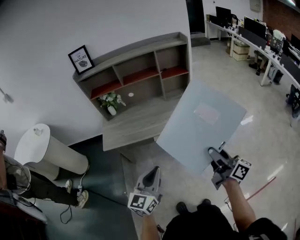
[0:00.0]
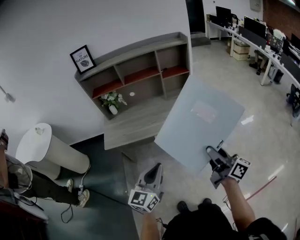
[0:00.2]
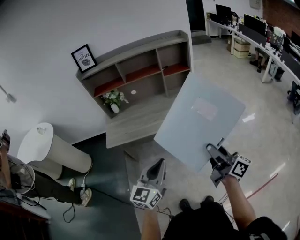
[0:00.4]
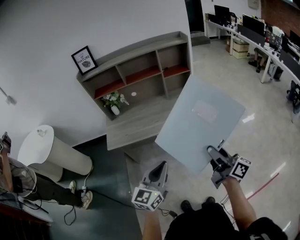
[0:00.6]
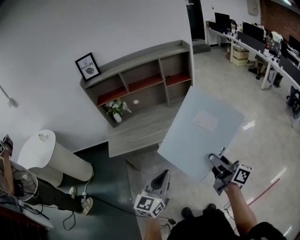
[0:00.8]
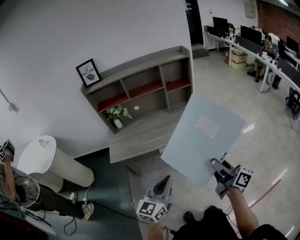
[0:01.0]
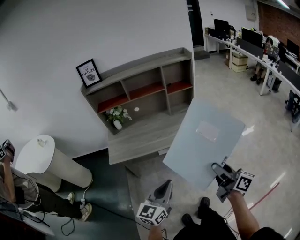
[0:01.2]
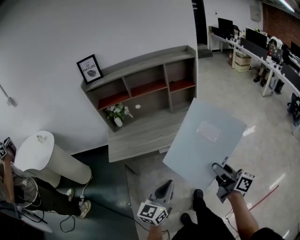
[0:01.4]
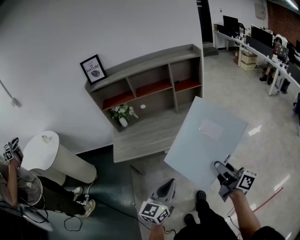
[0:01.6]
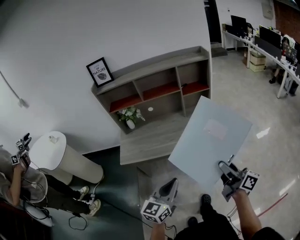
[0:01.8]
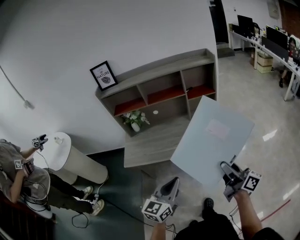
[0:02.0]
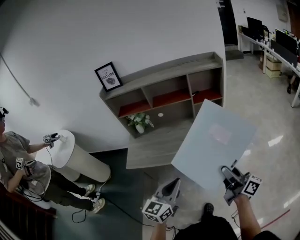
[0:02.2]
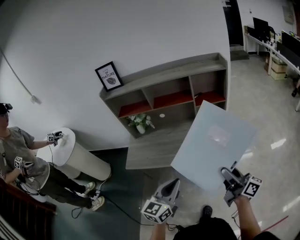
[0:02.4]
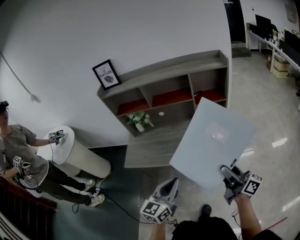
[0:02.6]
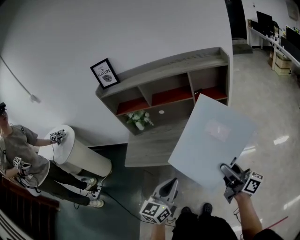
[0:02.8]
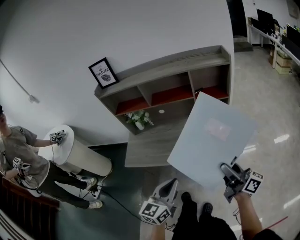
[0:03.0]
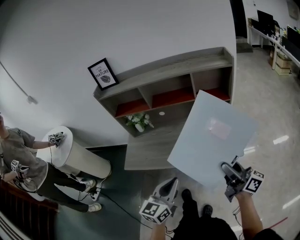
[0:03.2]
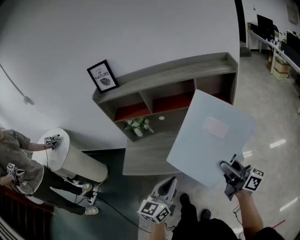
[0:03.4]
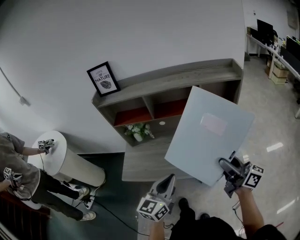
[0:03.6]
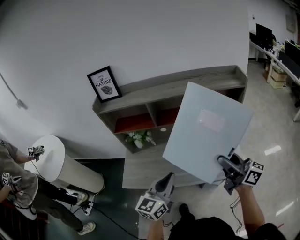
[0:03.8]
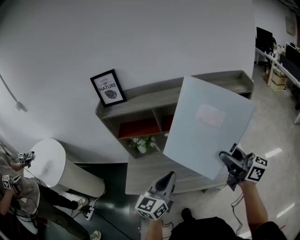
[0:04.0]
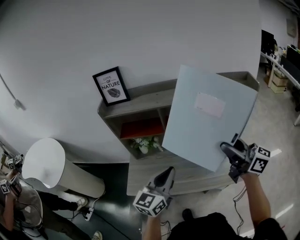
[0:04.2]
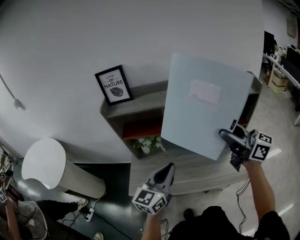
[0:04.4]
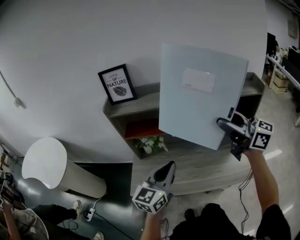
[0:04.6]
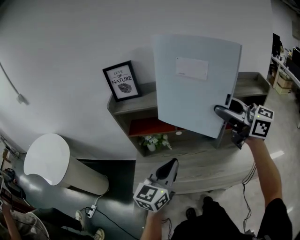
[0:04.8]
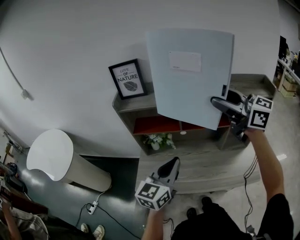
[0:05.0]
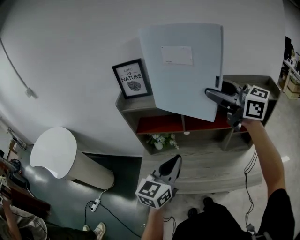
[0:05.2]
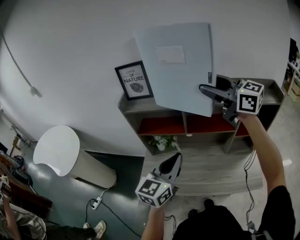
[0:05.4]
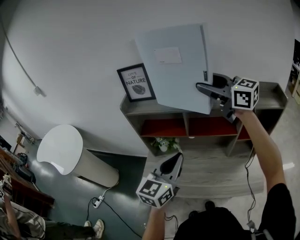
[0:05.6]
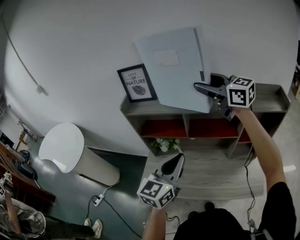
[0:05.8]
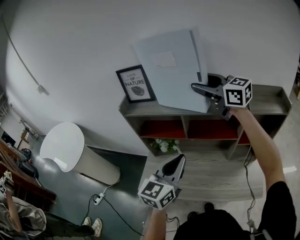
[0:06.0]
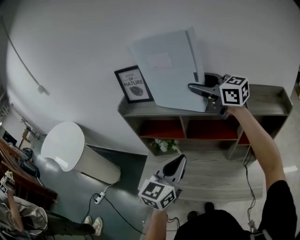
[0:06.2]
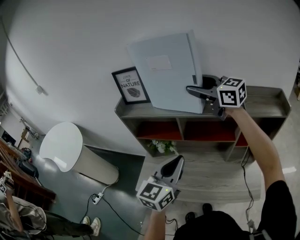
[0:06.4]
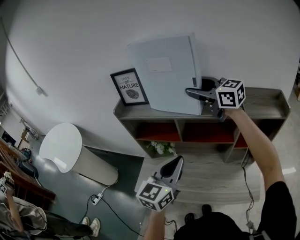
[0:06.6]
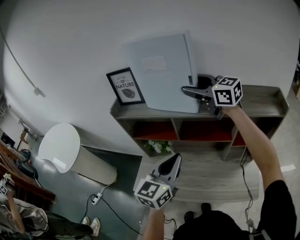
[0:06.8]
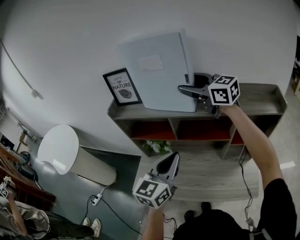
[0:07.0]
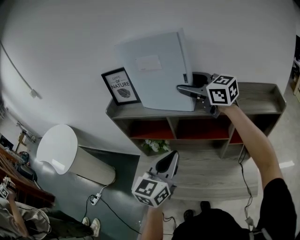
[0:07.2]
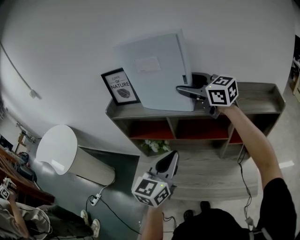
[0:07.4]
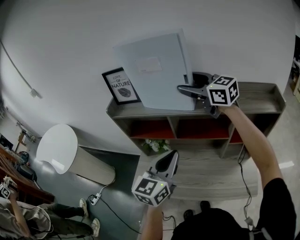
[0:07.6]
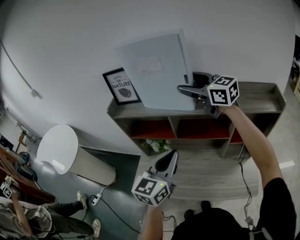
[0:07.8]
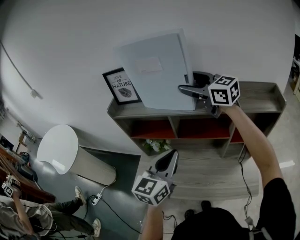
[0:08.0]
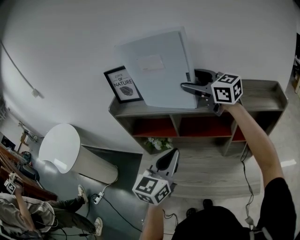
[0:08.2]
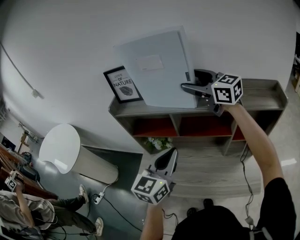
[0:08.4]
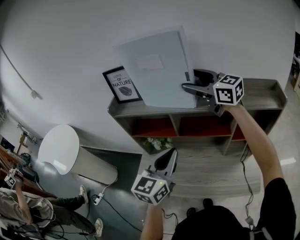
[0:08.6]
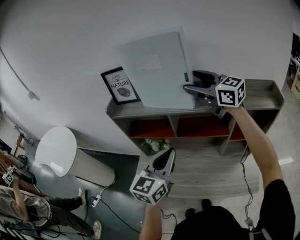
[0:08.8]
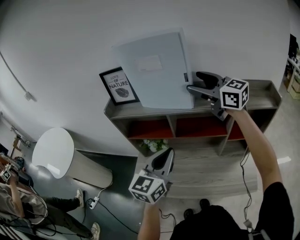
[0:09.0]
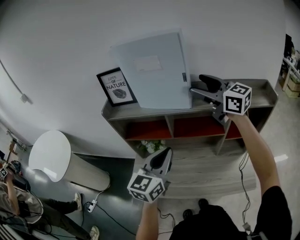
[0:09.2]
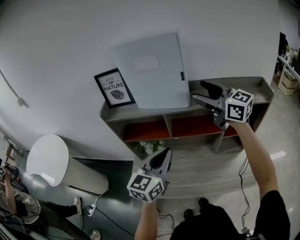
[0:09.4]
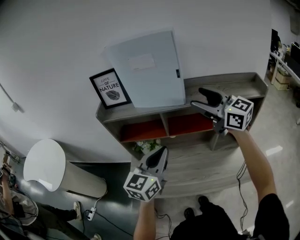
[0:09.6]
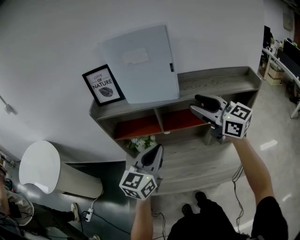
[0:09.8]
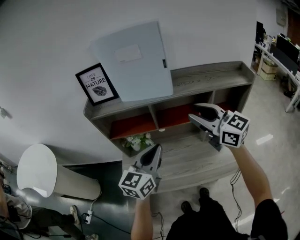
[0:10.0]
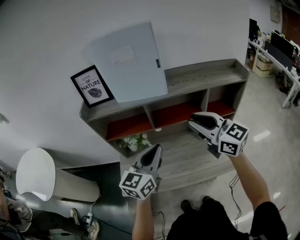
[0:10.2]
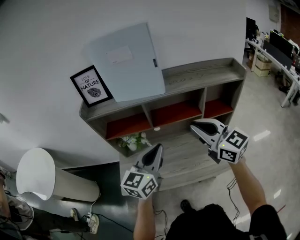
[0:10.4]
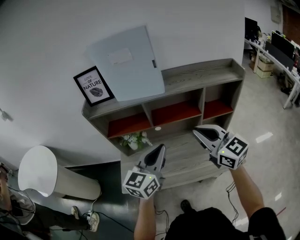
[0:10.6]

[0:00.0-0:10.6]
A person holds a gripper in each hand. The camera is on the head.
0:00.0 to 0:01.6: The grippers move only a little.
0:01.6 to 0:03.0: The grippers both shift forward by about 20 cm.
0:03.0 to 0:04.6: The right gripper heads forward, upward and to the left, covering some 40 cm, and swivels about 30 degrees. The left gripper shifts roughly 30 cm forward and to the left.
0:04.6 to 0:06.0: The left gripper changes place by some 10 cm, while the right gripper goes about 20 cm forward.
0:06.0 to 0:09.0: The grippers make only small movements.
0:09.0 to 0:10.6: The right gripper is displaced backward and downward by roughly 30 cm, changes its angle by roughly 20 degrees, and closes its fingers, while the left gripper shifts roughly 5 cm backward.

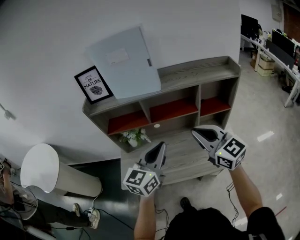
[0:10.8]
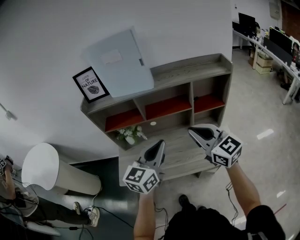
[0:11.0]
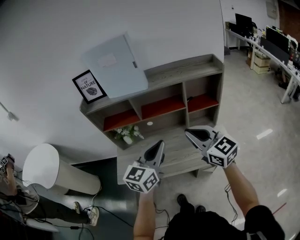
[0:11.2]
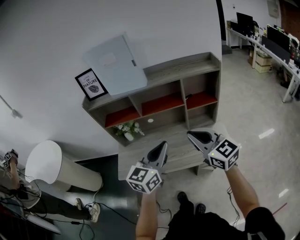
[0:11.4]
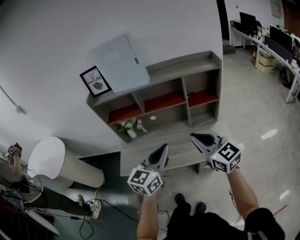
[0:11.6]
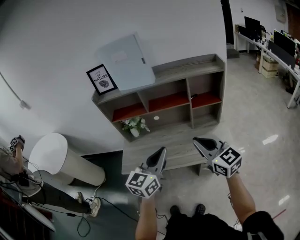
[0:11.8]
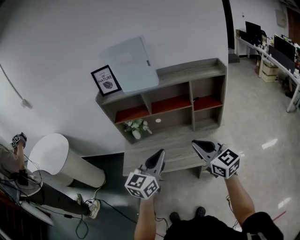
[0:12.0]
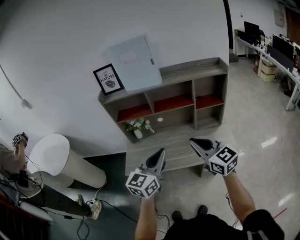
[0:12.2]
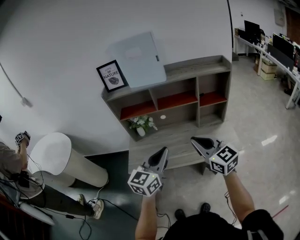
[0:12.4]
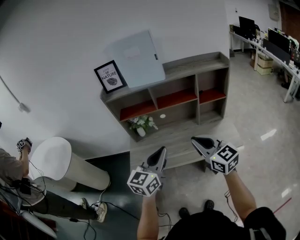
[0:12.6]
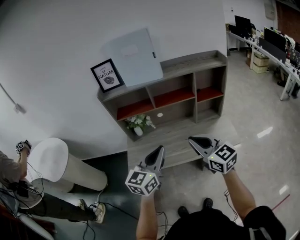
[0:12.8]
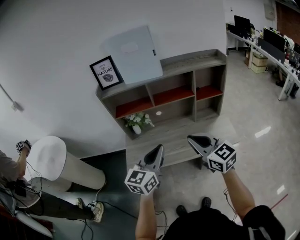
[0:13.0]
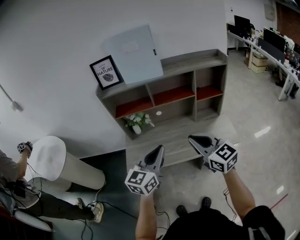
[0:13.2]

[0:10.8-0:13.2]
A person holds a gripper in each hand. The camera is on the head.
0:10.8 to 0:12.0: Both grippers travel together backward, roughly 15 cm.
0:12.0 to 0:13.2: Both grippers move to the left, some 10 cm.

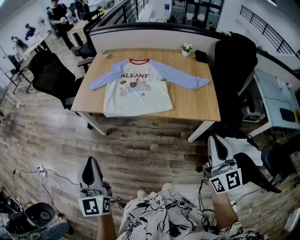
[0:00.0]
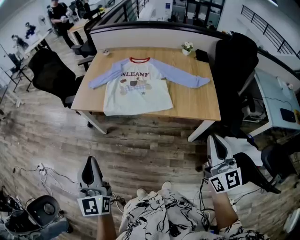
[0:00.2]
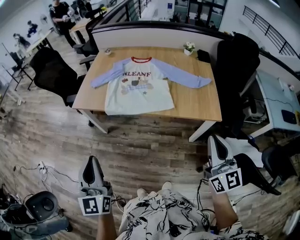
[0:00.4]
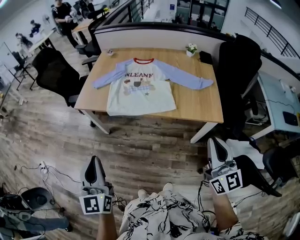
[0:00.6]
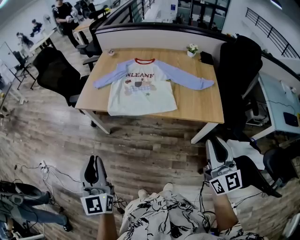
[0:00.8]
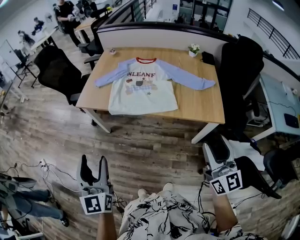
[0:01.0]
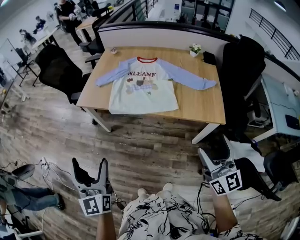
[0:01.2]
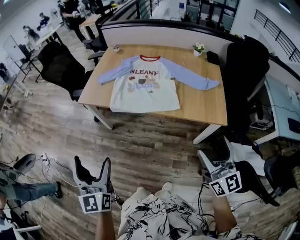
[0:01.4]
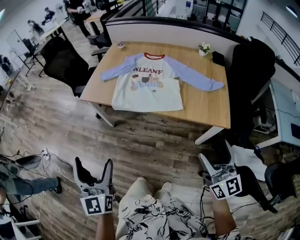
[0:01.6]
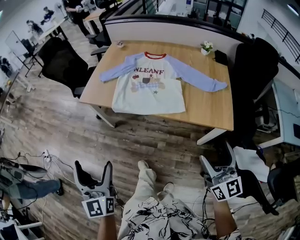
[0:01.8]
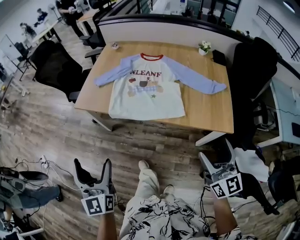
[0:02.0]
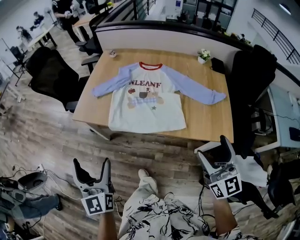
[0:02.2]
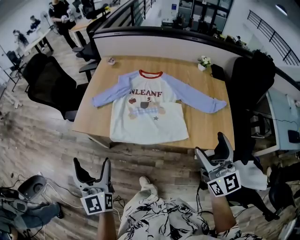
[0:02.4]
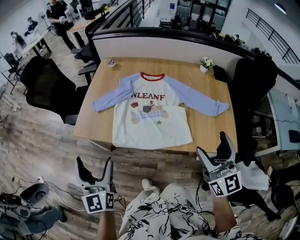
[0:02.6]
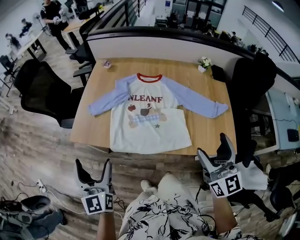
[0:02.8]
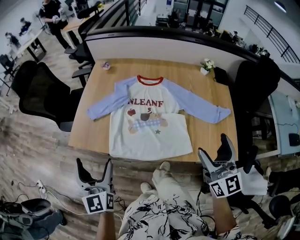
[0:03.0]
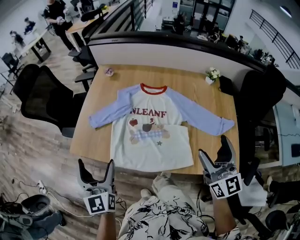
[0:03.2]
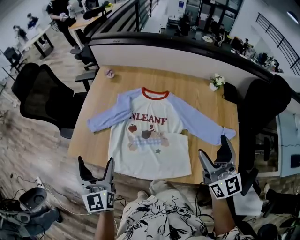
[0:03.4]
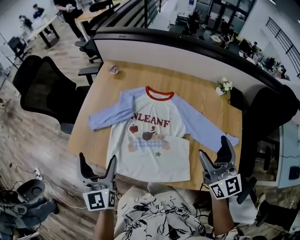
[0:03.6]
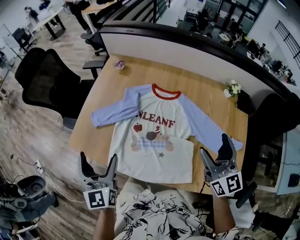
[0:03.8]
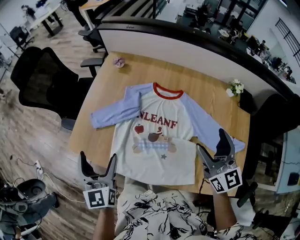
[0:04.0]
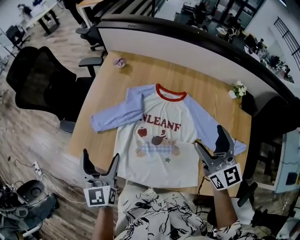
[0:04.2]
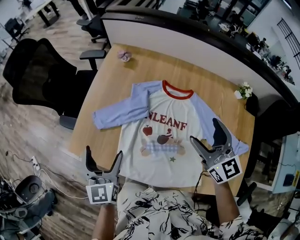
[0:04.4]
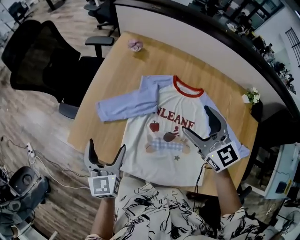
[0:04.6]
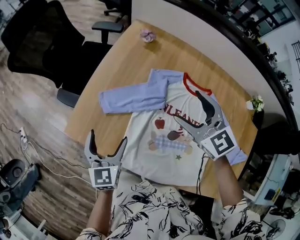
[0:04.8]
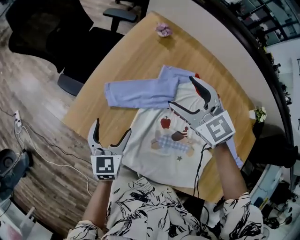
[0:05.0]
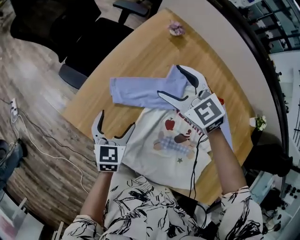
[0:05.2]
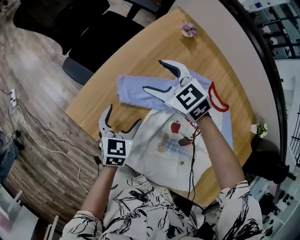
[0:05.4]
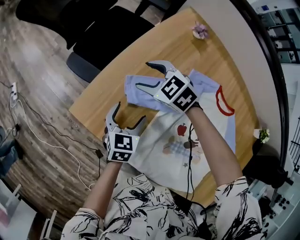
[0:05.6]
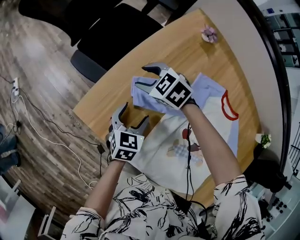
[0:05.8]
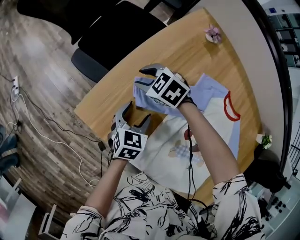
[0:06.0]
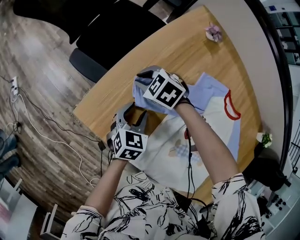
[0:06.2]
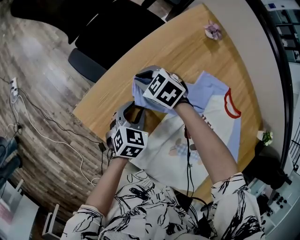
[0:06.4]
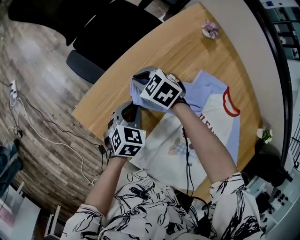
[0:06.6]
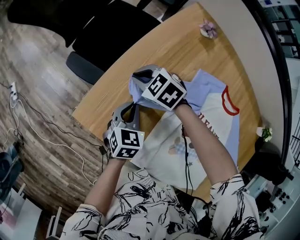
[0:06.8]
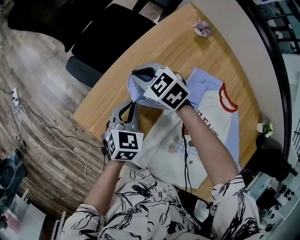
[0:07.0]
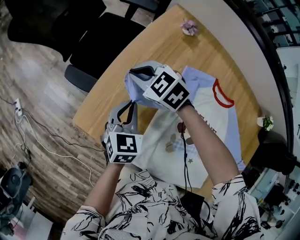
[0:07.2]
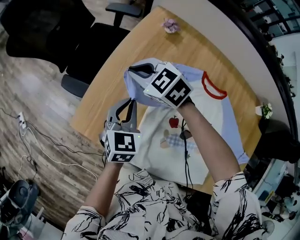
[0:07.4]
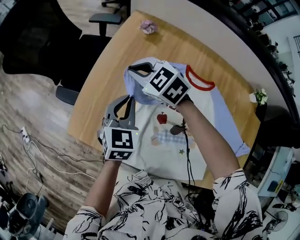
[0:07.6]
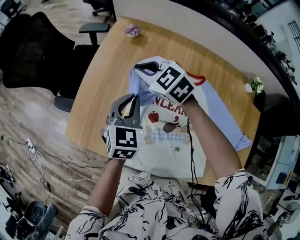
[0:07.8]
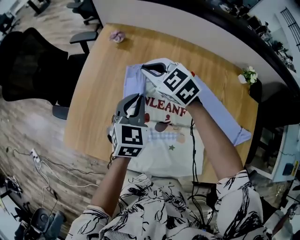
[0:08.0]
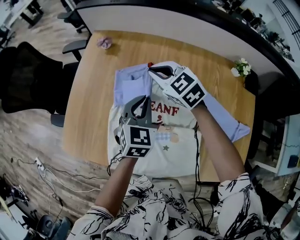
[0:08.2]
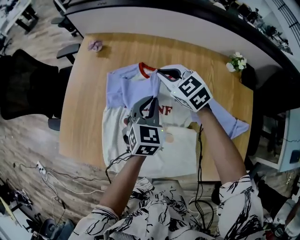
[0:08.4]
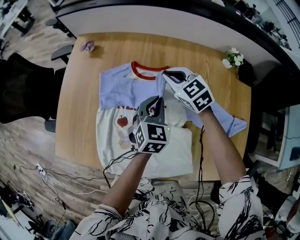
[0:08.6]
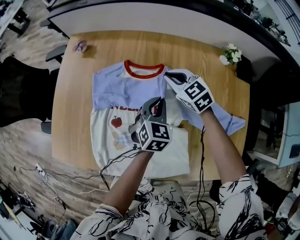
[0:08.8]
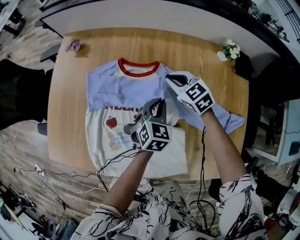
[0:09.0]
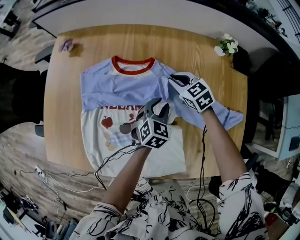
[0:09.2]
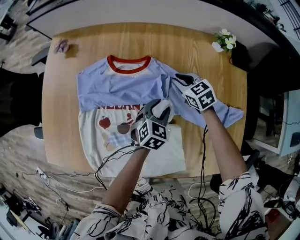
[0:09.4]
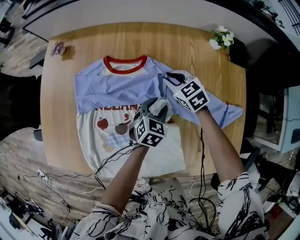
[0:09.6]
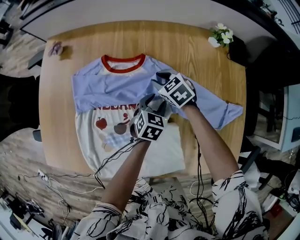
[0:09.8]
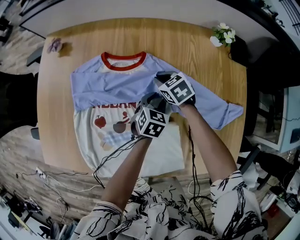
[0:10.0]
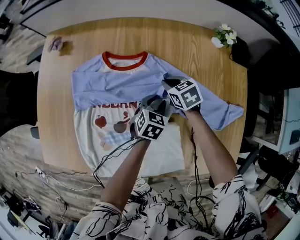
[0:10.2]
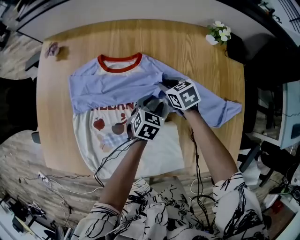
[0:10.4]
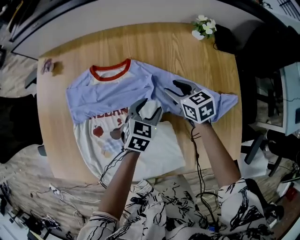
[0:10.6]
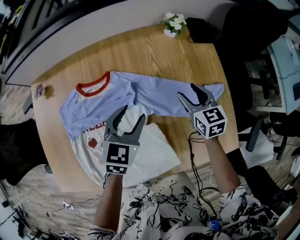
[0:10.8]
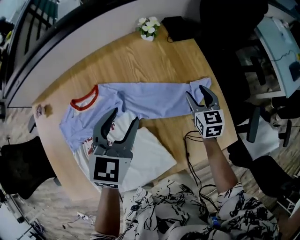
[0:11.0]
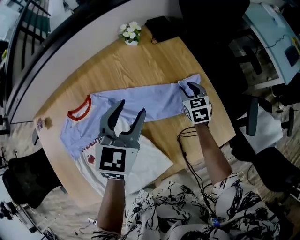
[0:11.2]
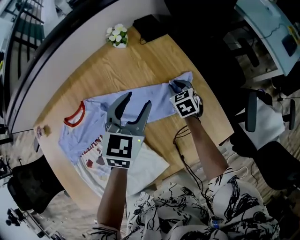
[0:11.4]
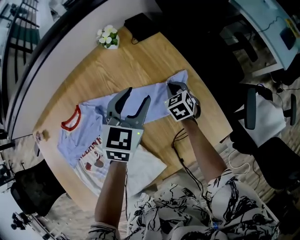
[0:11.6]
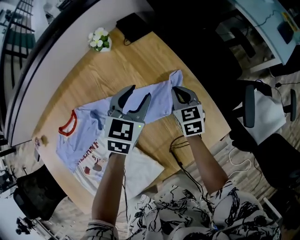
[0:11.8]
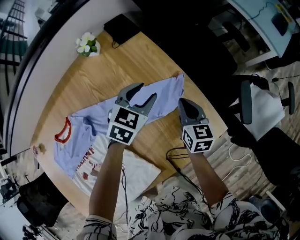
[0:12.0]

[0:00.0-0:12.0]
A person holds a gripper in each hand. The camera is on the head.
0:00.0 to 0:01.6: The left gripper opens up; the right gripper opens its fingers.
0:01.6 to 0:03.0: Both grippers travel together forward, some 35 cm.
0:03.0 to 0:04.4: Both grippers travel together forward, approximately 30 cm. The right gripper rotates some 20 degrees.
0:04.4 to 0:06.0: The left gripper moves downward, about 25 cm, and changes its angle by some 30 degrees. The right gripper moves some 60 cm, tips its fingers downward by approximately 40 degrees, and closes its fingers.
0:06.0 to 0:07.6: The grippers both shift upward and to the right by some 20 cm. The left gripper changes its angle by approximately 20 degrees, and closes up; the right gripper turns by about 30 degrees, and closes.
0:07.6 to 0:09.0: The two grippers travel together, roughly 40 cm. The left gripper rotates some 20 degrees; the right gripper turns by about 30 degrees.
0:09.0 to 0:10.4: The two grippers go roughly 10 cm downward. The right gripper swivels about 30 degrees.
0:10.4 to 0:12.0: The left gripper shifts by some 40 cm, and rotates roughly 50 degrees. Meanwhile the right gripper swings up and down, approximately 15 cm each way, with 2 reversals, changes its angle by some 70 degrees, and opens, then closes again.
